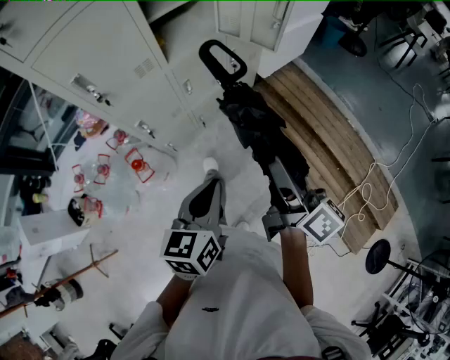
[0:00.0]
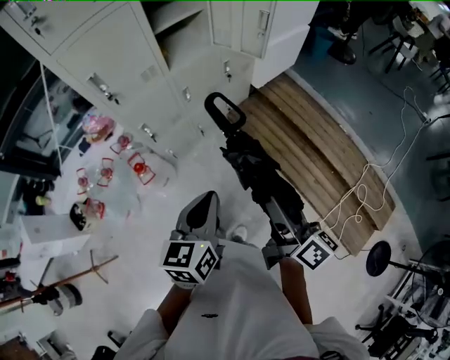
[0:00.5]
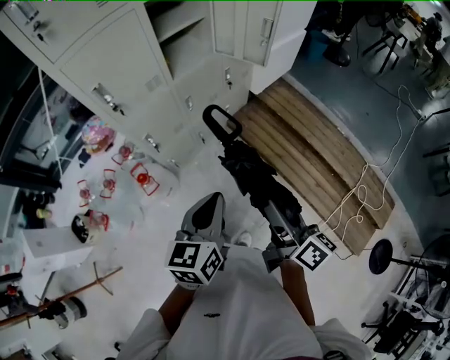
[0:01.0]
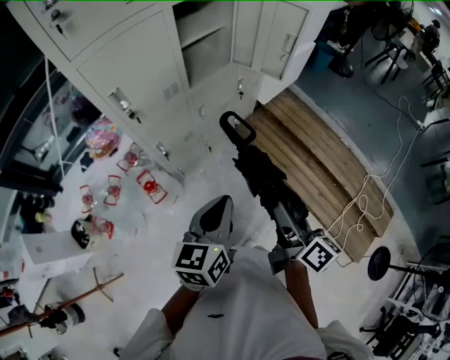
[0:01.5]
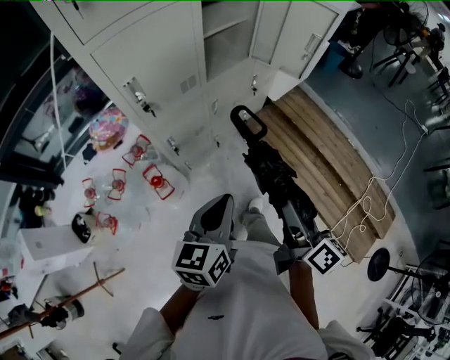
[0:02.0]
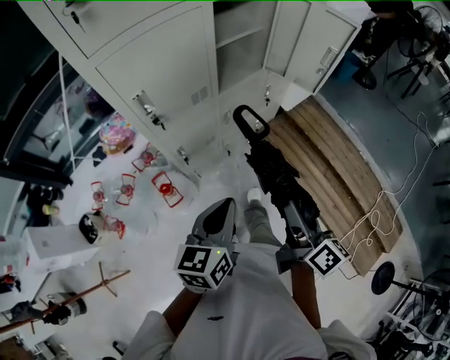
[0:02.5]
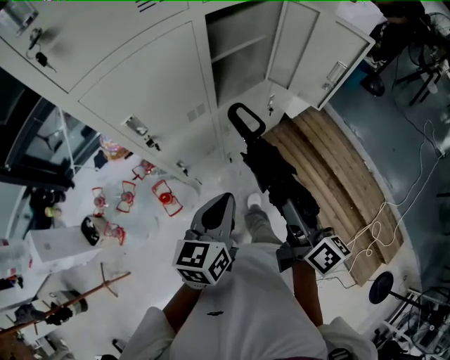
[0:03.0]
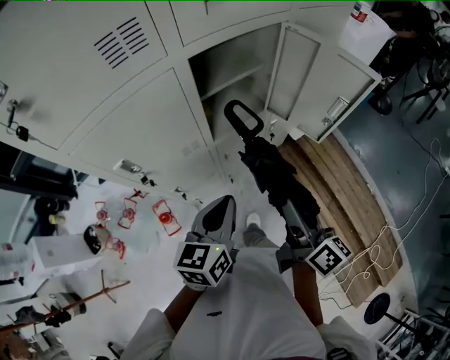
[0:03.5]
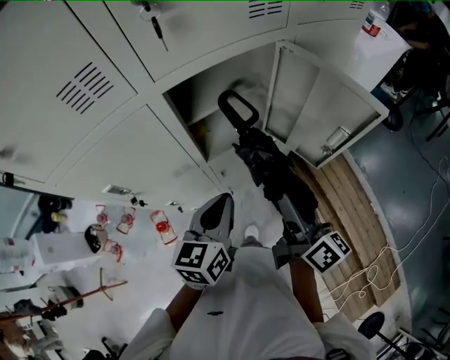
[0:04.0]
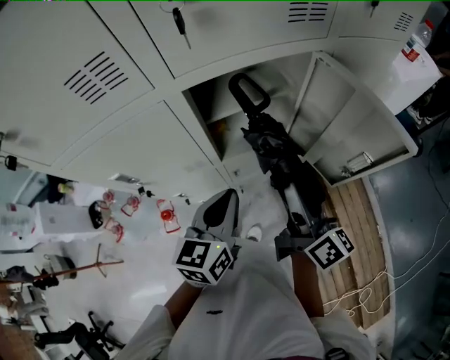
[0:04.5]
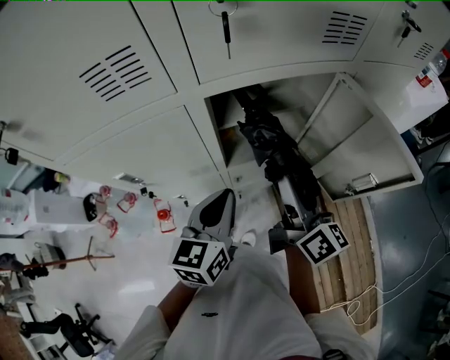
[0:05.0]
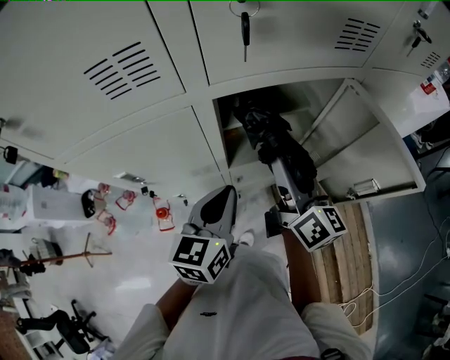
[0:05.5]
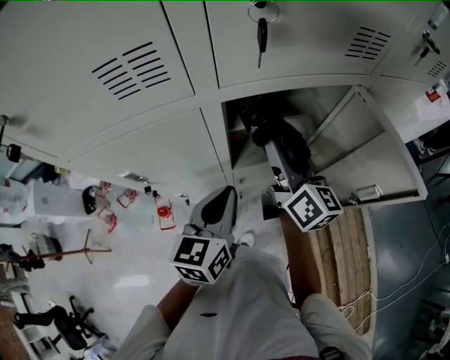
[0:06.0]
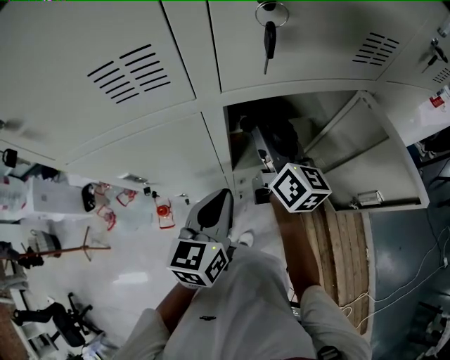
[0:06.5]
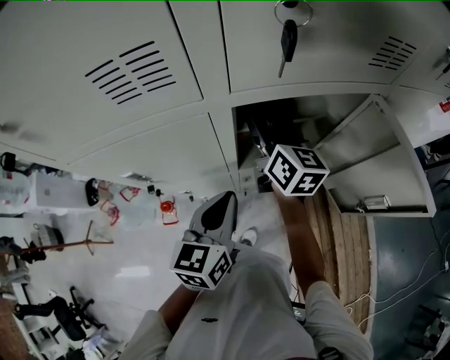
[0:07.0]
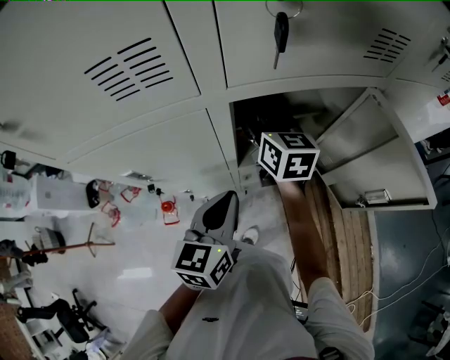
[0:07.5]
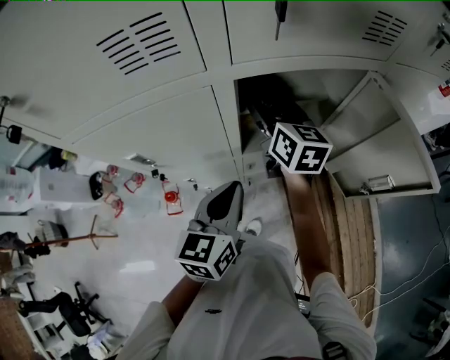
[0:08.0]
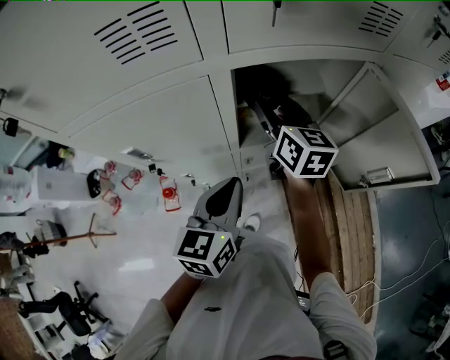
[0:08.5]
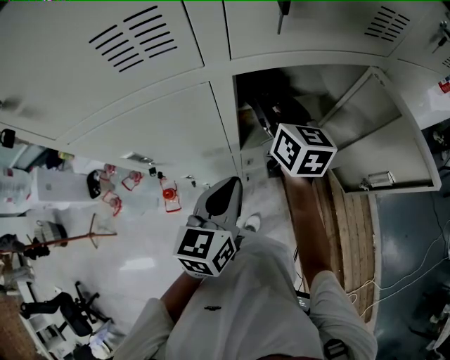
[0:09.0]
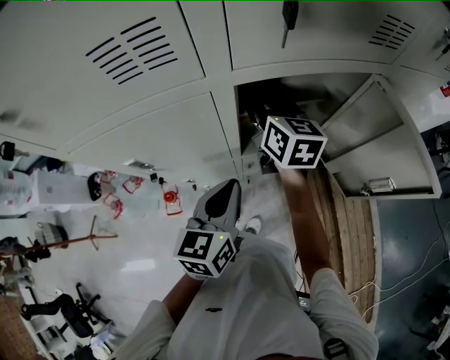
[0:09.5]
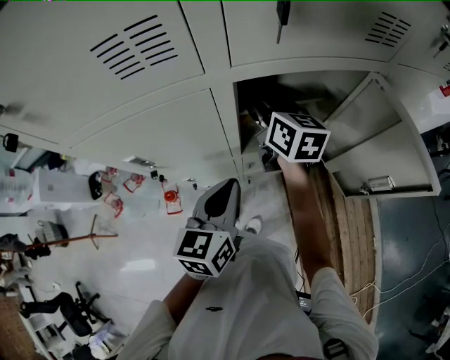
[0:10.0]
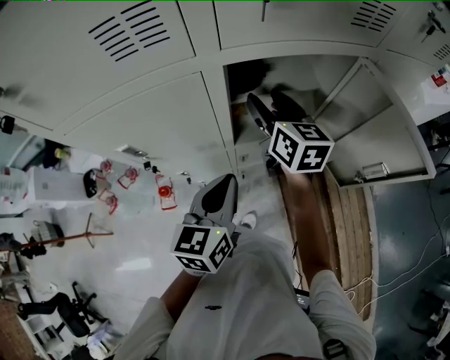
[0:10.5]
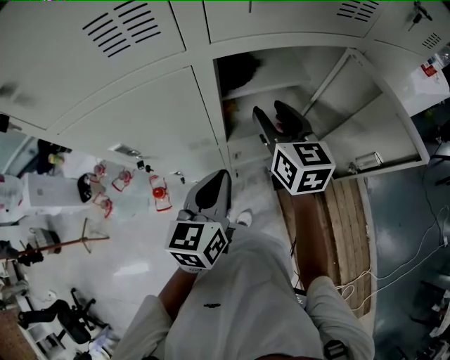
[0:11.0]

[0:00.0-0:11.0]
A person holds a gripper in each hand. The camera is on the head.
0:00.0 to 0:02.0: The left gripper moves to the left, approximately 10 cm. The right gripper moves to the left and backward, some 10 cm.
0:02.0 to 0:03.5: The two grippers go about 25 cm forward.
0:03.5 to 0:05.5: The right gripper shifts about 25 cm forward; the left gripper goes roughly 15 cm forward.
0:05.5 to 0:07.5: The right gripper shifts roughly 15 cm forward and to the left, and turns by roughly 30 degrees.
0:07.5 to 0:09.0: The grippers stay close to where they were, moving slightly.
0:09.0 to 0:11.0: The right gripper is displaced backward by approximately 5 cm.

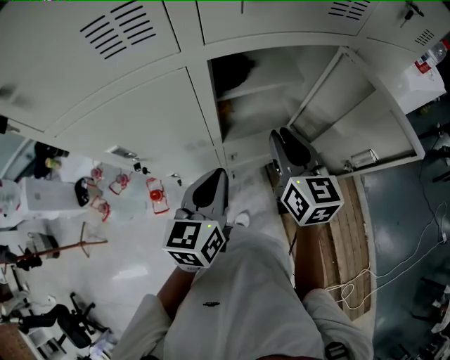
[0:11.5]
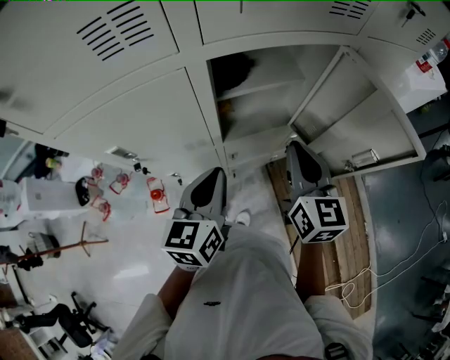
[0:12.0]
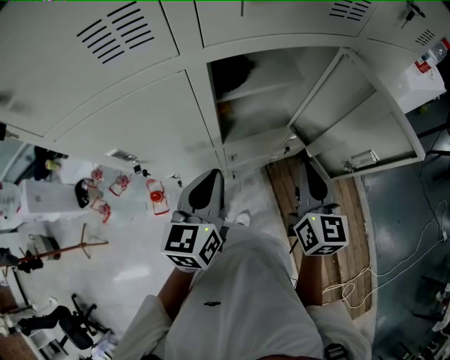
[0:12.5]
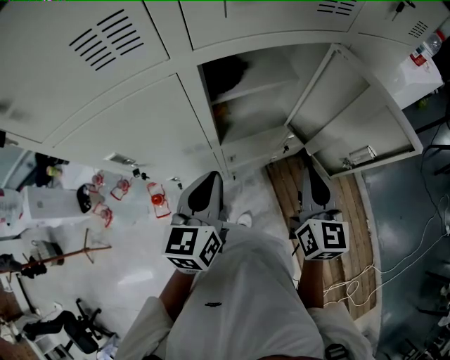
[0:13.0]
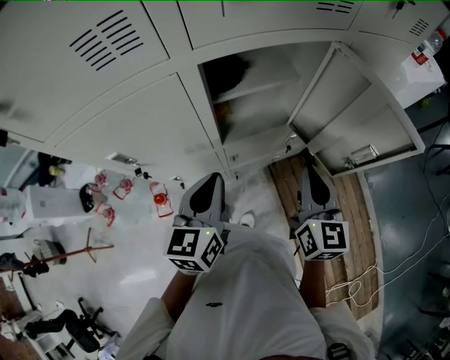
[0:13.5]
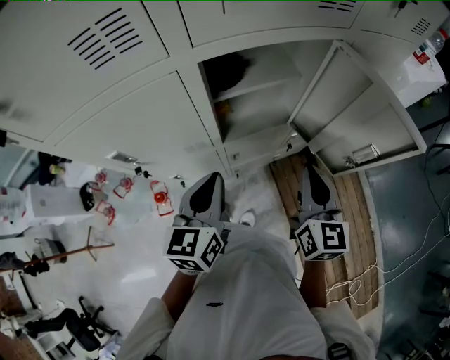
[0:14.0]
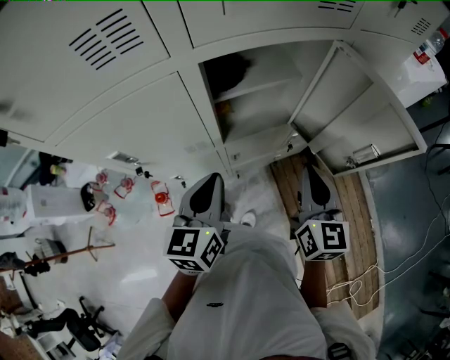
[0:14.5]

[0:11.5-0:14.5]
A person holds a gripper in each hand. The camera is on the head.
0:11.5 to 0:13.0: The right gripper travels to the right and backward by roughly 10 cm.
0:13.0 to 0:14.5: The two grippers keep their place.

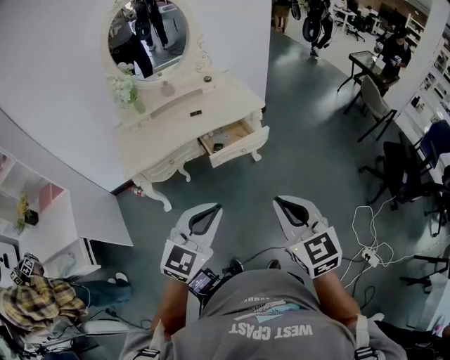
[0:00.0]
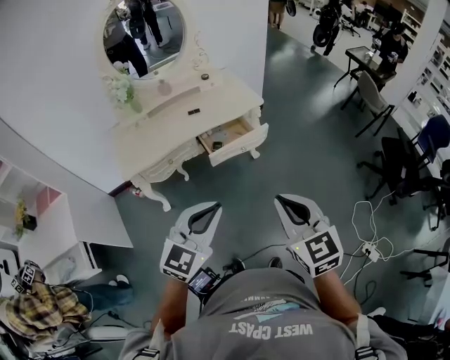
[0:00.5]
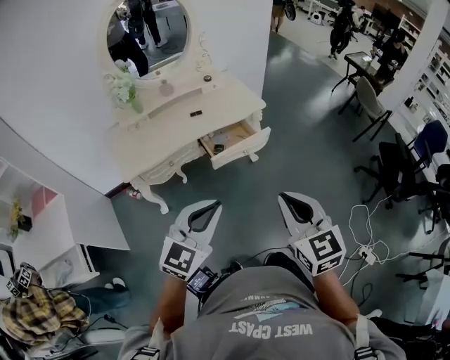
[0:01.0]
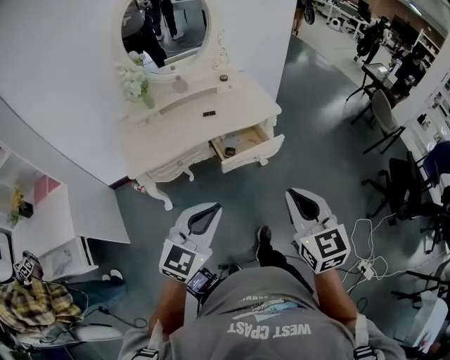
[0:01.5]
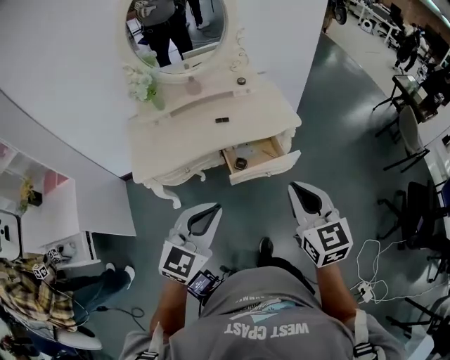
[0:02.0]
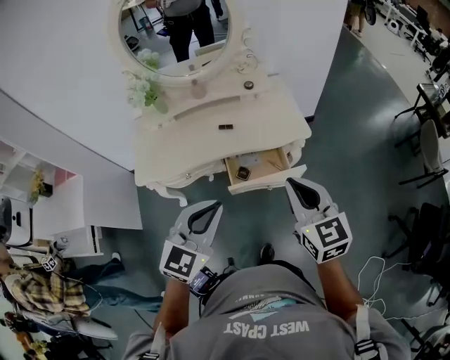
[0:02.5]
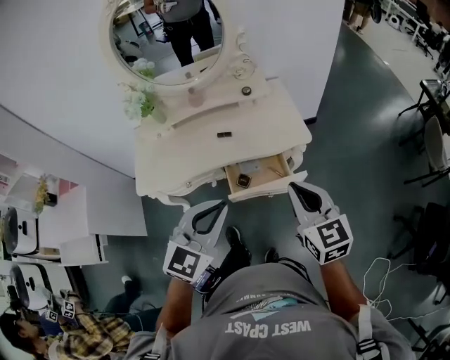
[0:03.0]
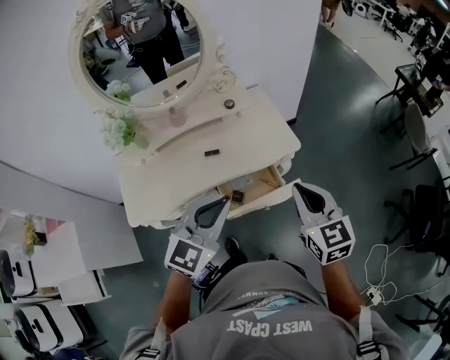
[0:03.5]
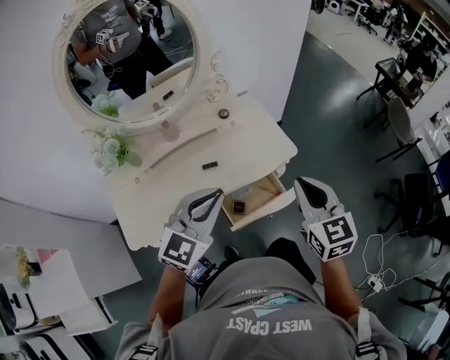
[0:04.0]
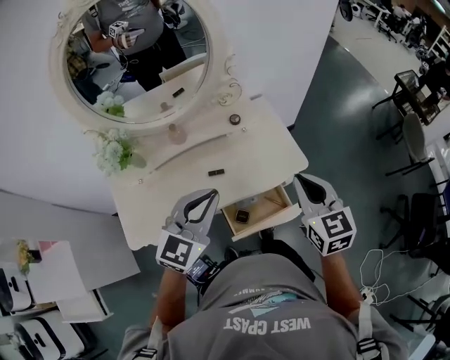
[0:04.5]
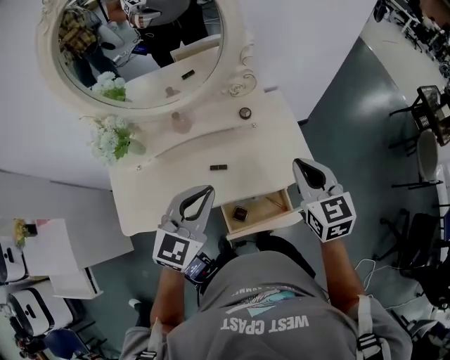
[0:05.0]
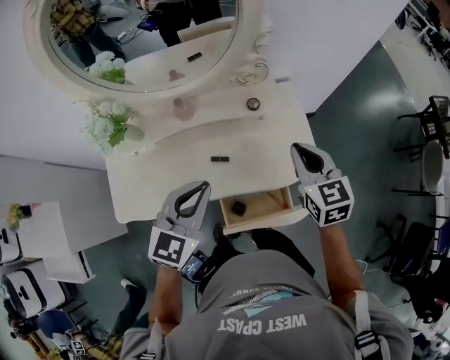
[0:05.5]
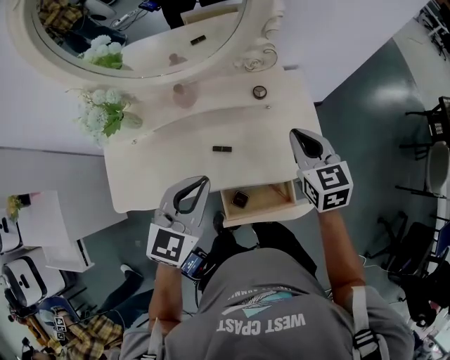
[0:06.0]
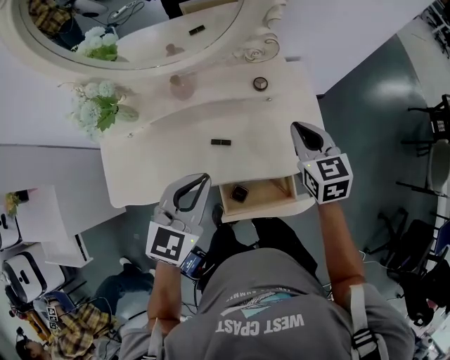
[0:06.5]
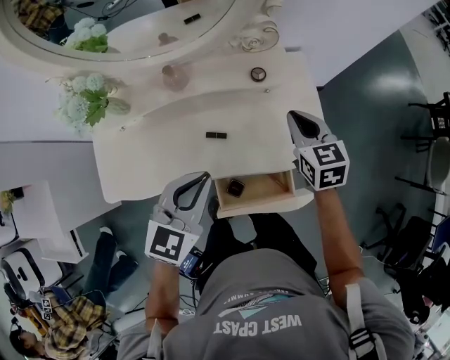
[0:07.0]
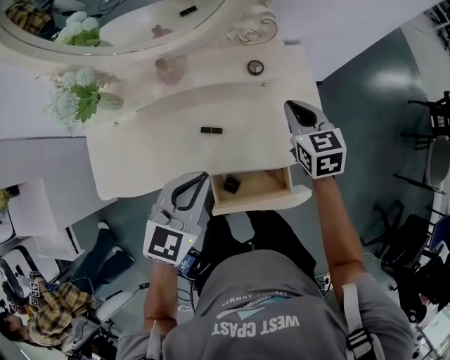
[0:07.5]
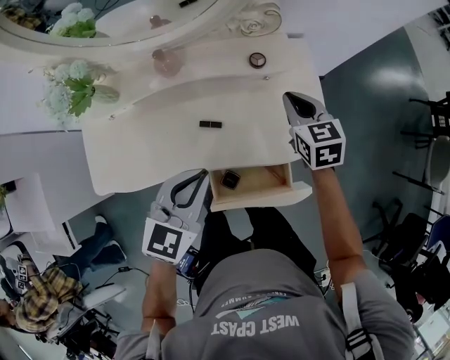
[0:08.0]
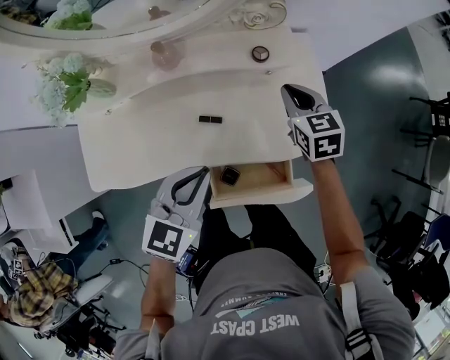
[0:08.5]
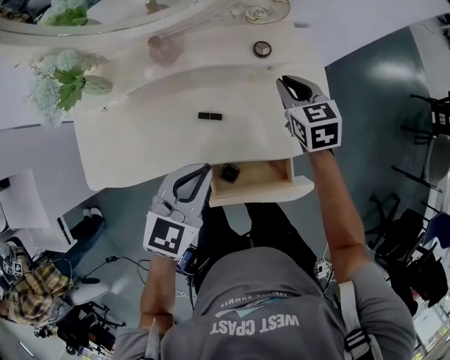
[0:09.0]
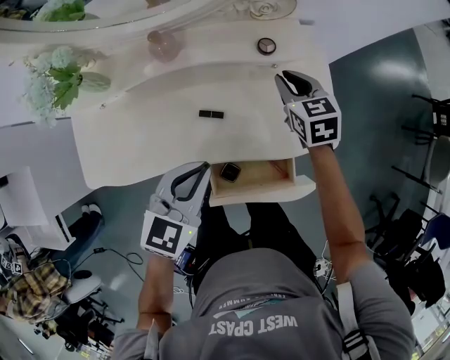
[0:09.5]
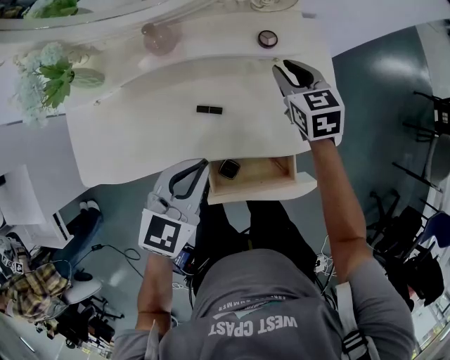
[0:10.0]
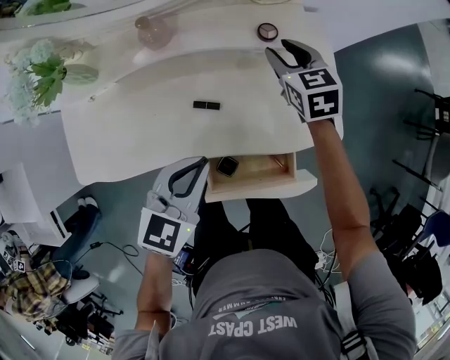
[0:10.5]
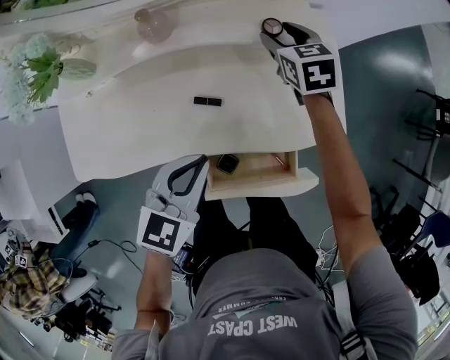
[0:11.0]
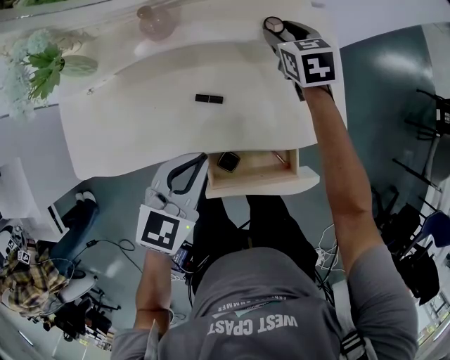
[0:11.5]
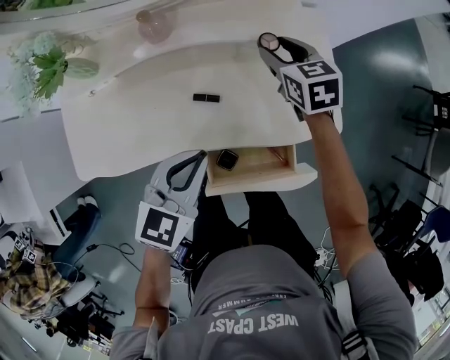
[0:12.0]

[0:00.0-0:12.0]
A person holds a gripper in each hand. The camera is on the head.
0:00.0 to 0:02.0: The grippers both shift forward by approximately 20 cm.
0:02.0 to 0:04.0: Both grippers travel together forward, approximately 30 cm.
0:04.0 to 0:06.0: The left gripper is displaced forward and downward by some 15 cm, and rotates approximately 30 degrees. The right gripper travels forward and downward by approximately 30 cm, and changes its angle by some 20 degrees.
0:06.0 to 0:08.0: The left gripper travels downward by roughly 10 cm, while the right gripper is displaced downward and forward by approximately 15 cm.
0:08.0 to 0:10.0: Both grippers travel together downward, roughly 5 cm. The right gripper opens up.
0:10.0 to 0:12.0: The right gripper opens.

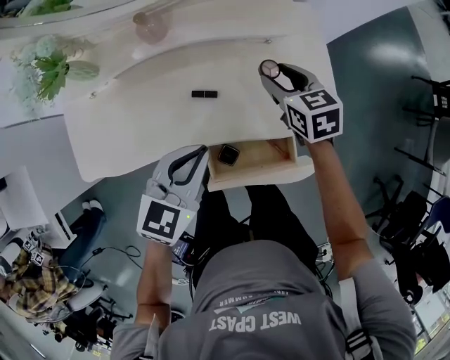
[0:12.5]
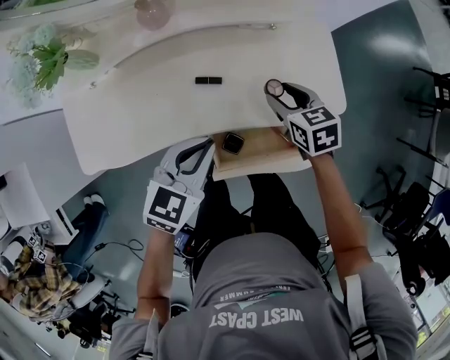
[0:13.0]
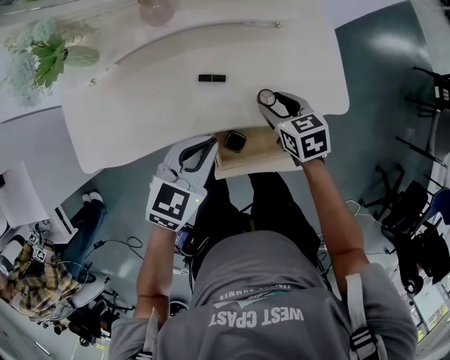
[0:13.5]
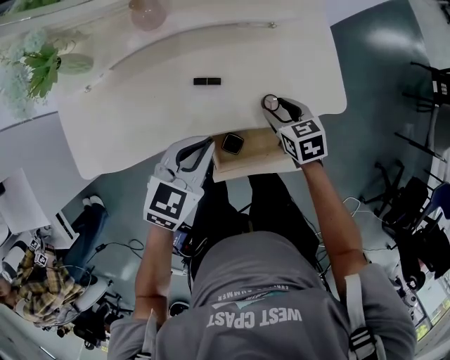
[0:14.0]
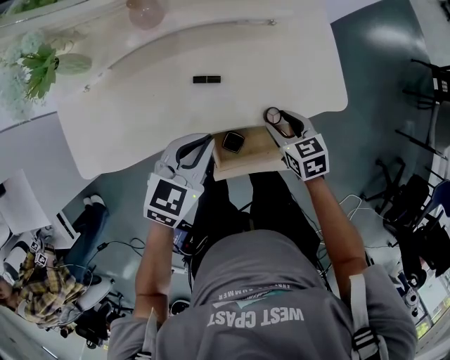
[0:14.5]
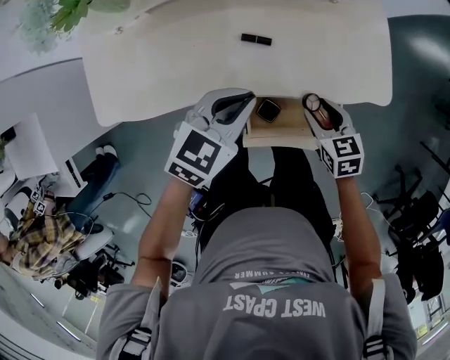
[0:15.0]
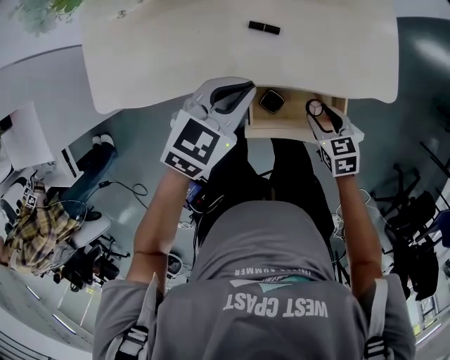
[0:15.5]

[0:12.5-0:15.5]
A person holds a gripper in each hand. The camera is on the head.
0:12.5 to 0:14.0: The left gripper travels downward by some 5 cm, while the right gripper goes approximately 15 cm backward and downward.
0:14.0 to 0:15.5: The right gripper goes approximately 10 cm backward.
